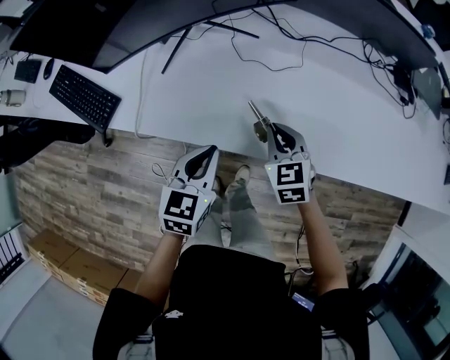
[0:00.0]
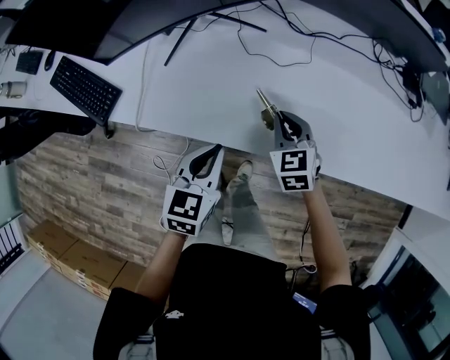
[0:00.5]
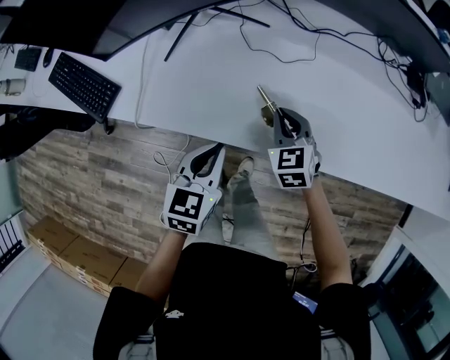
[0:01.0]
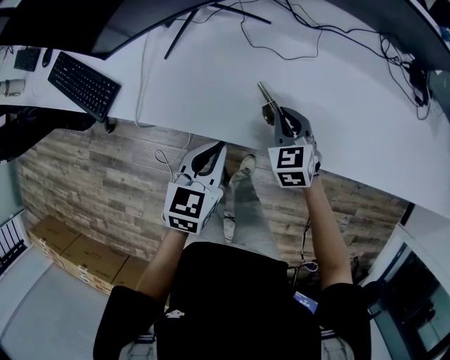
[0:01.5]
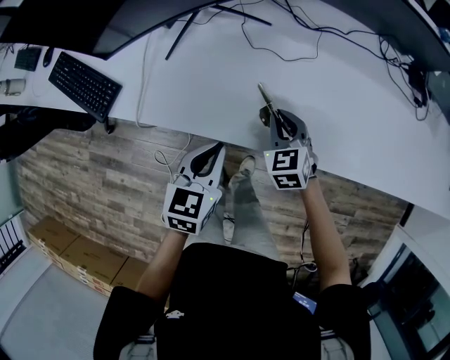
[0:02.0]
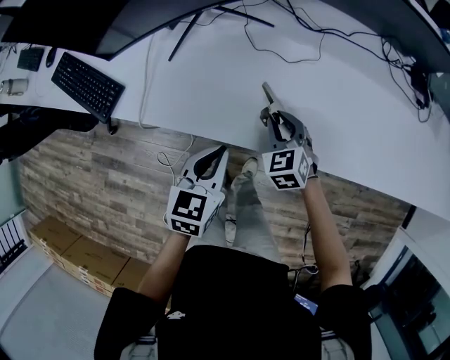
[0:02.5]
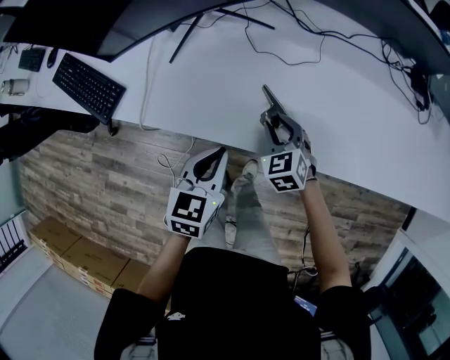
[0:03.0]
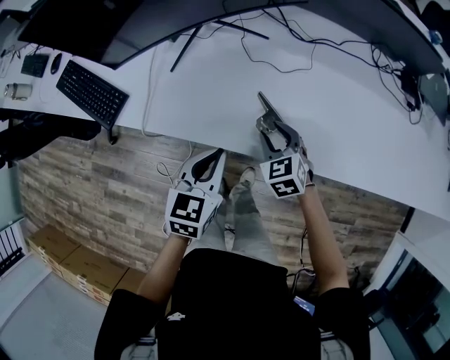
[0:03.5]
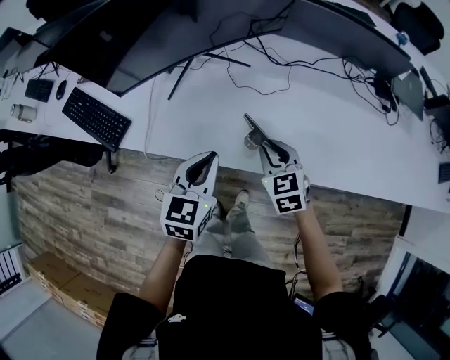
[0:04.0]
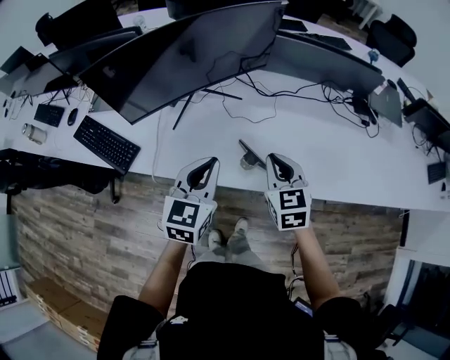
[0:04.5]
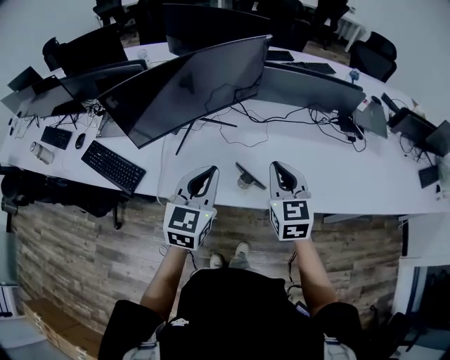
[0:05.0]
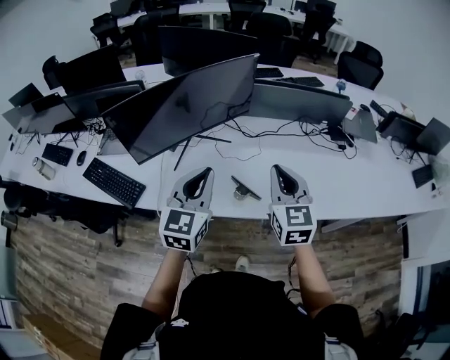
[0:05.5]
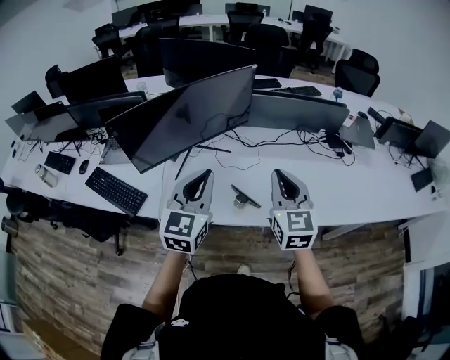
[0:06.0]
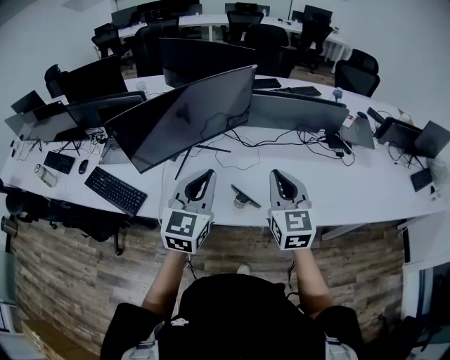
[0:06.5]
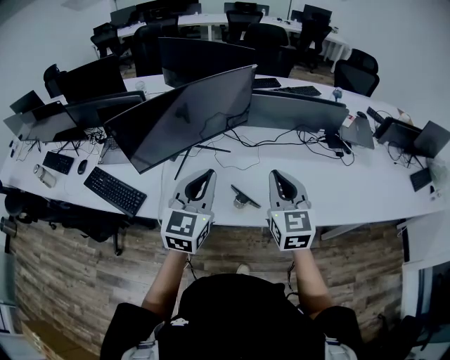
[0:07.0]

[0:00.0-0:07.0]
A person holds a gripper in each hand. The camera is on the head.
0:00.0 to 0:02.0: The right gripper goes some 5 cm downward.
0:02.0 to 0:03.5: The right gripper opens.
0:03.5 to 0:05.0: Both grippers move upward, approximately 25 cm. The left gripper changes its angle by roughly 30 degrees; the right gripper rotates roughly 40 degrees, and closes its fingers.
0:05.0 to 0:07.0: Both grippers move upward, roughly 5 cm.

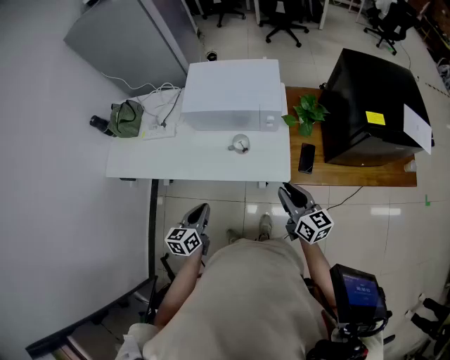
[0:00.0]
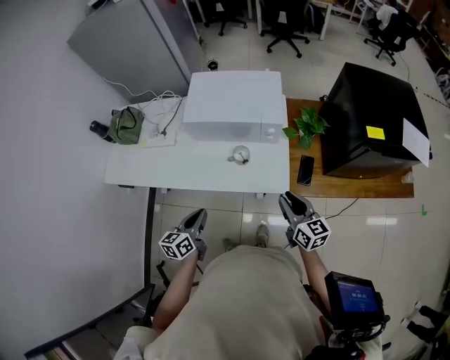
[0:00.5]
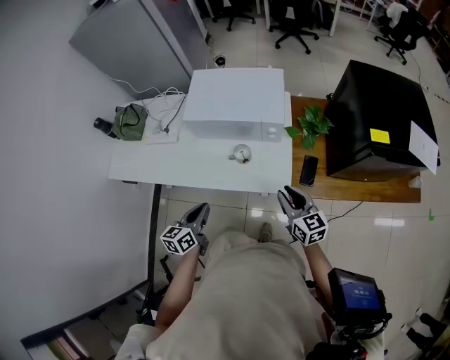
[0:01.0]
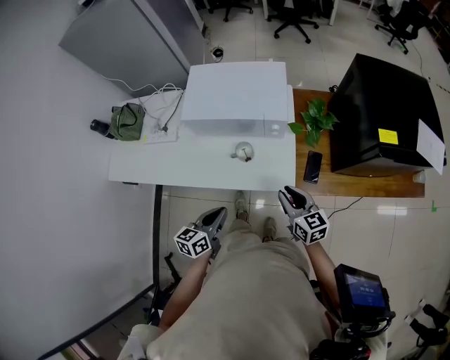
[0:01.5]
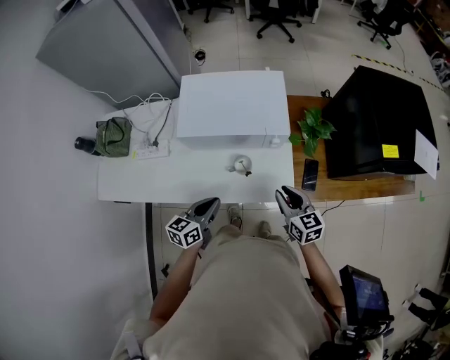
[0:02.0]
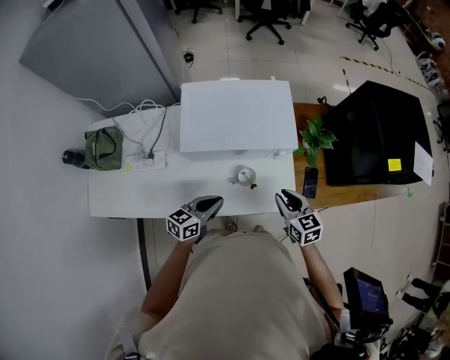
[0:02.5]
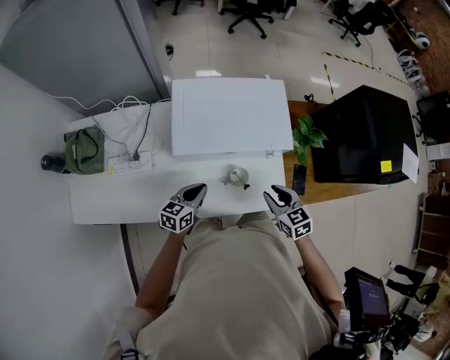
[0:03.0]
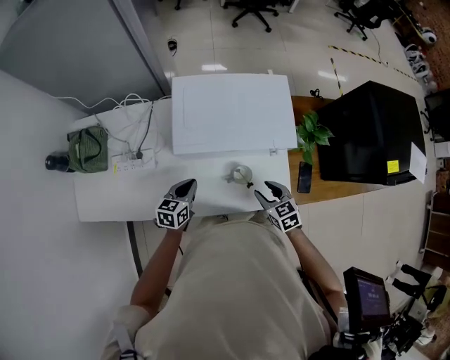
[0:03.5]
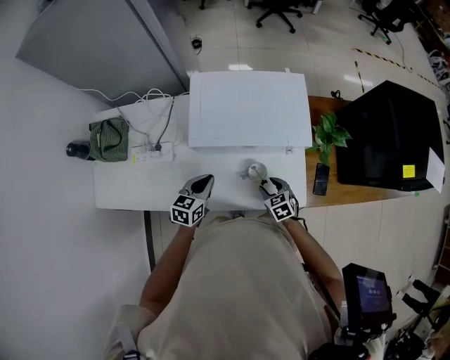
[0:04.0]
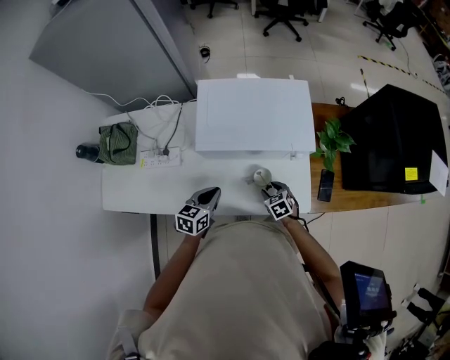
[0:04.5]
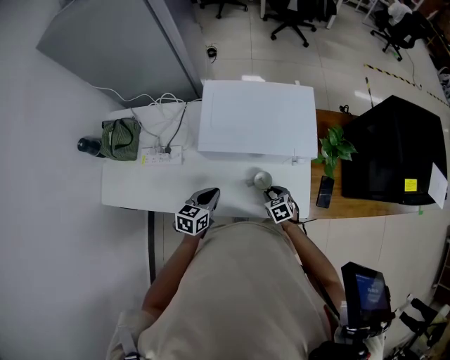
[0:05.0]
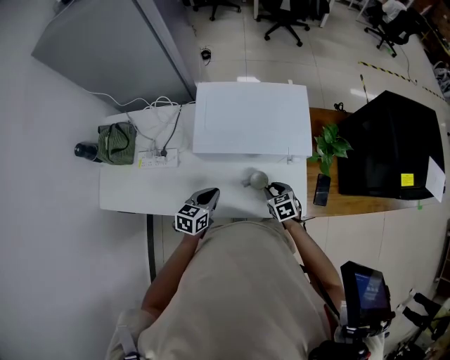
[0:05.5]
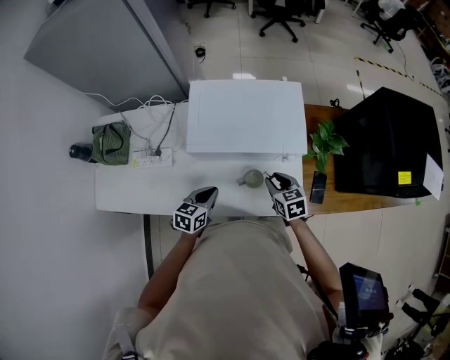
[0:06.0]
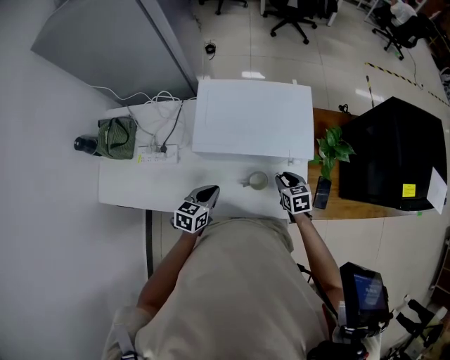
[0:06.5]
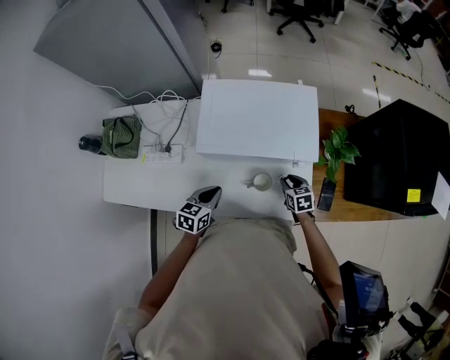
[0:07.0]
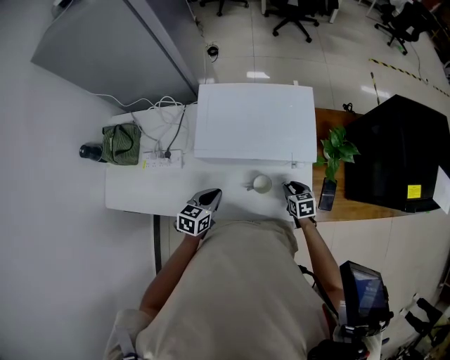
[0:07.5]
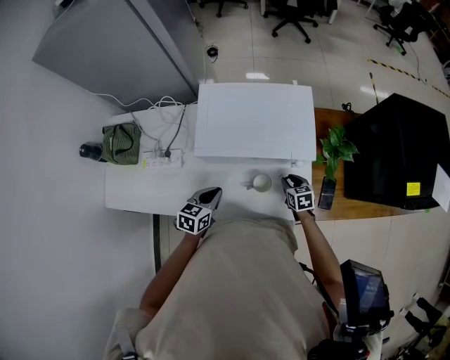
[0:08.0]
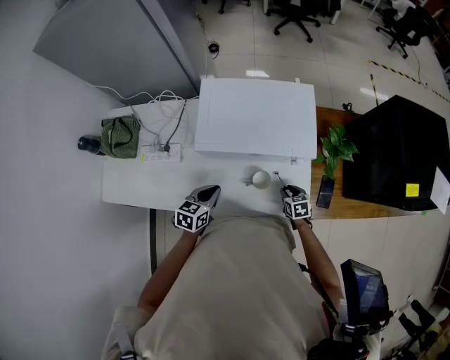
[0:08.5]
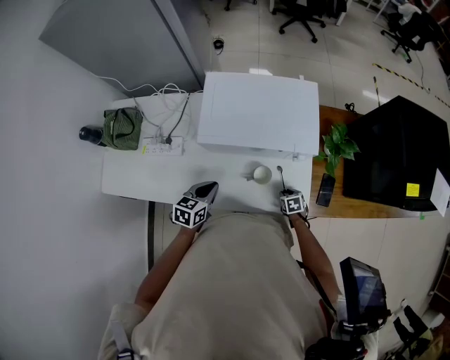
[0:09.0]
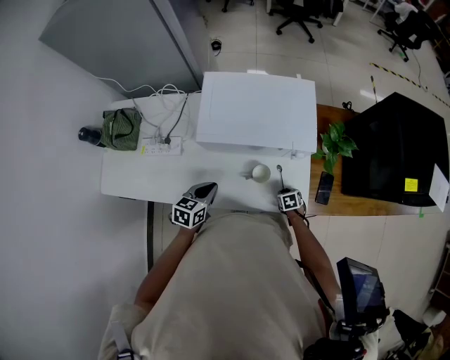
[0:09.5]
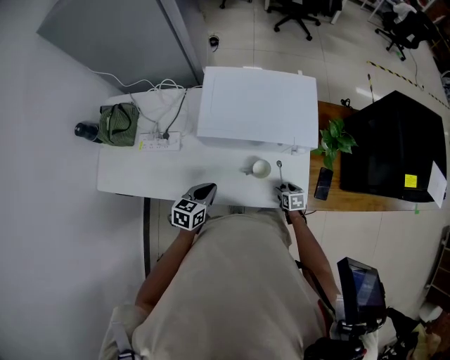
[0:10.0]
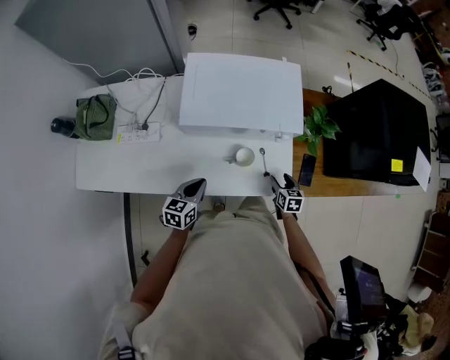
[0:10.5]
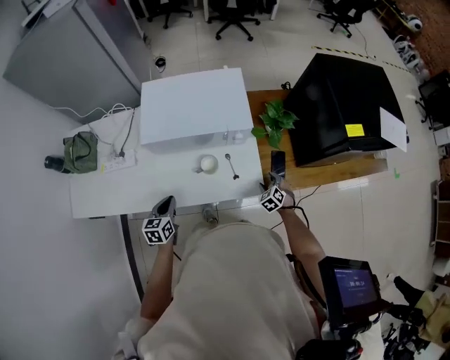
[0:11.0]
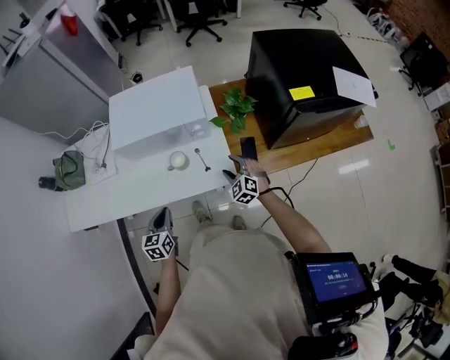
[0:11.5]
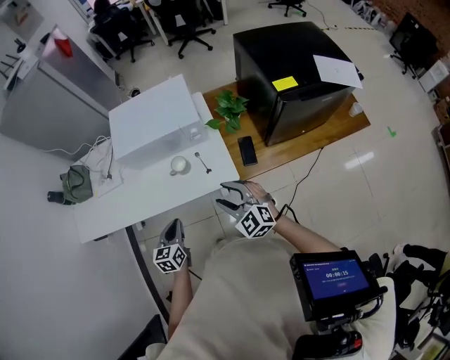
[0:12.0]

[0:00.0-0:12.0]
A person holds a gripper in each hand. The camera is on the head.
0:00.0 to 0:02.0: The left gripper moves forward, approximately 15 cm. Meanwhile the right gripper moves forward and downward, approximately 15 cm.
0:02.0 to 0:04.0: The right gripper heads downward and to the left, covering some 20 cm, changes its angle by approximately 30 degrees, and opens its fingers. The left gripper moves forward, to the left and downward, approximately 15 cm.
0:04.0 to 0:06.0: The right gripper heads upward, covering roughly 10 cm.
0:06.0 to 0:08.0: The right gripper travels downward by some 10 cm.
0:08.0 to 0:10.0: The right gripper is displaced downward by about 10 cm, and opens; the left gripper moves roughly 5 cm.
0:10.0 to 0:12.0: The left gripper goes some 25 cm backward and to the right; the right gripper goes roughly 40 cm upward and backward, and tips its fingers upward by approximately 40 degrees.

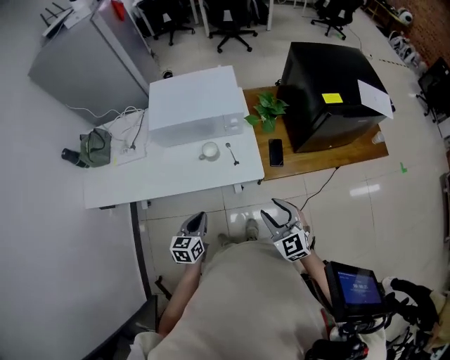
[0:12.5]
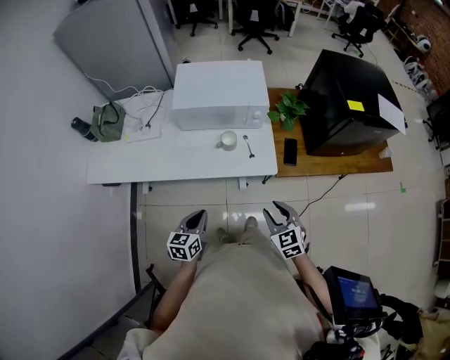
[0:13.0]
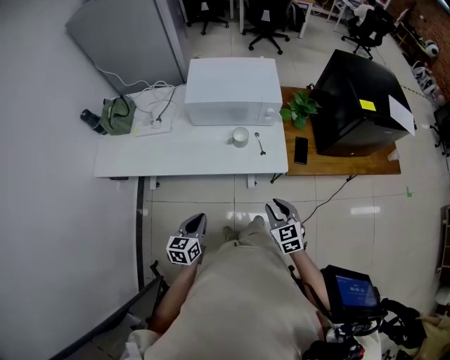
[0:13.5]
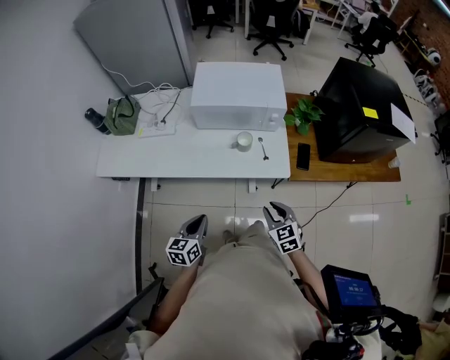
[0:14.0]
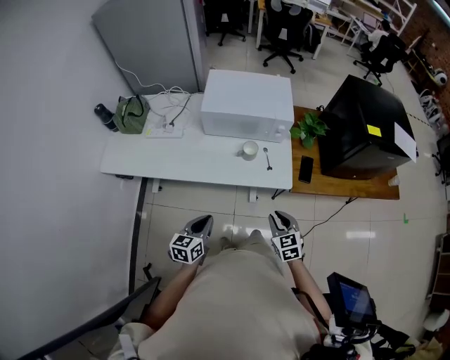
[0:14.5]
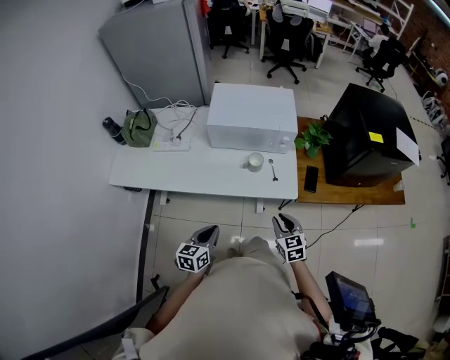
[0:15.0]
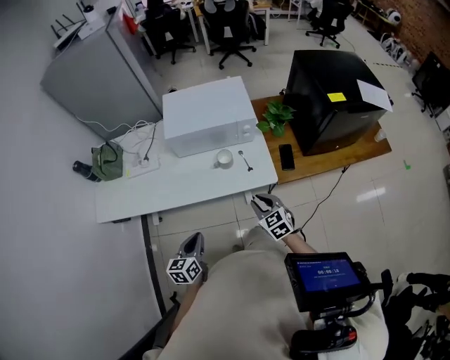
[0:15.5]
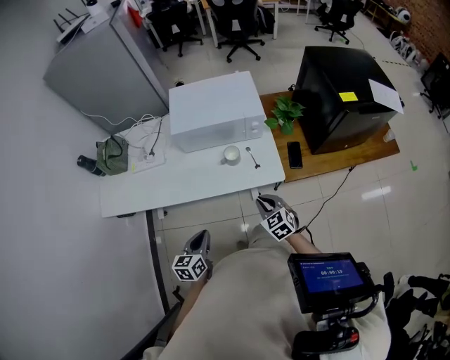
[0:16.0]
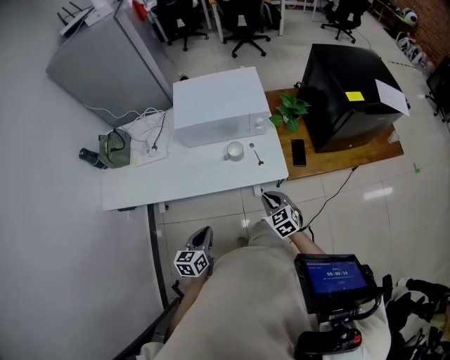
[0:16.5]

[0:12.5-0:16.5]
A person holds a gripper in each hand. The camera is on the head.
0:12.5 to 0:14.5: The left gripper goes approximately 10 cm to the left and backward, while the right gripper goes some 15 cm downward and to the left, and closes up.
0:14.5 to 0:16.5: The right gripper travels forward by roughly 5 cm.

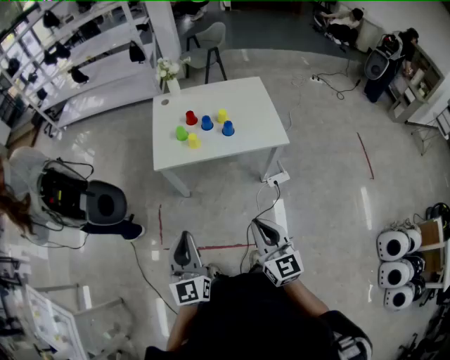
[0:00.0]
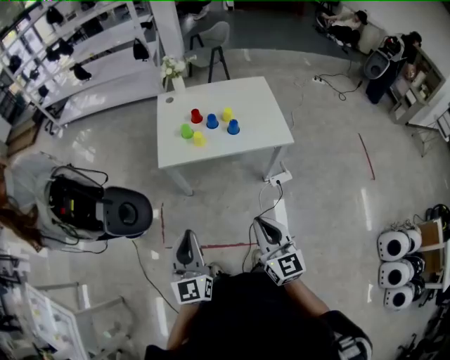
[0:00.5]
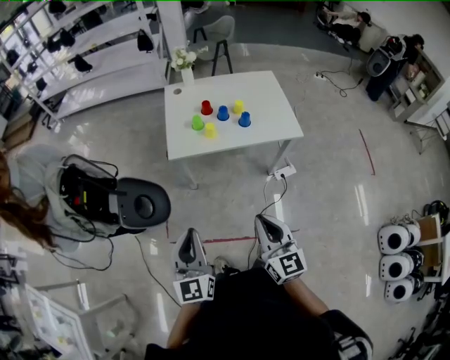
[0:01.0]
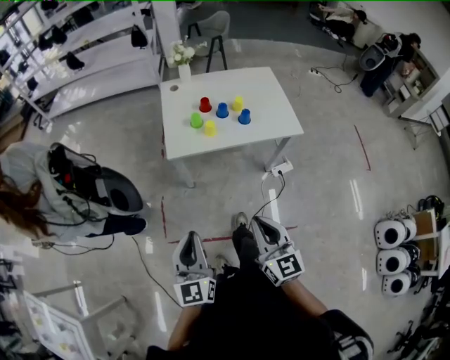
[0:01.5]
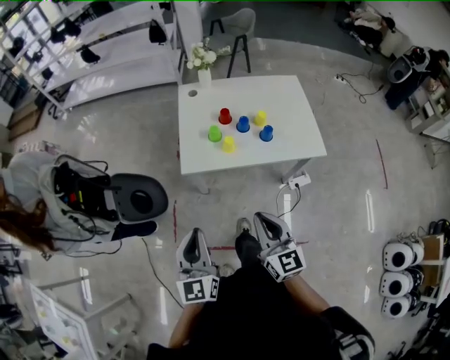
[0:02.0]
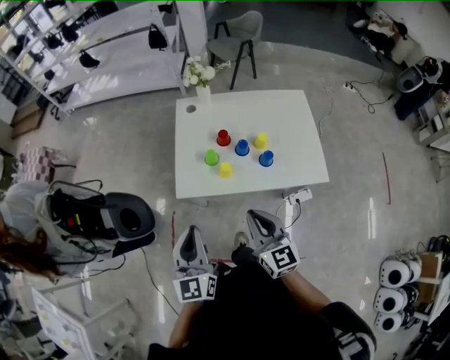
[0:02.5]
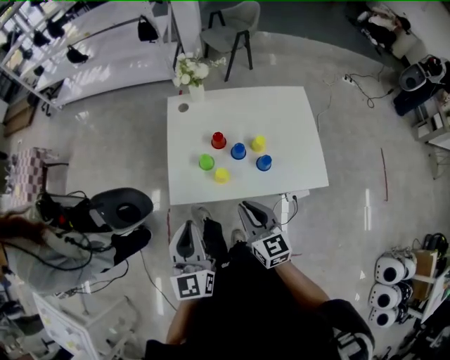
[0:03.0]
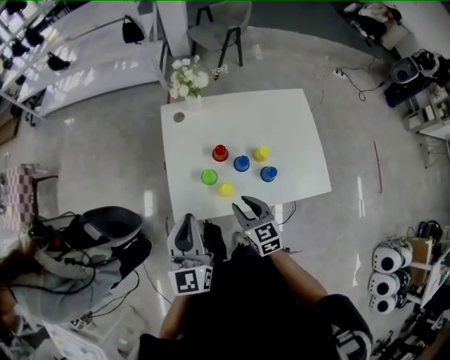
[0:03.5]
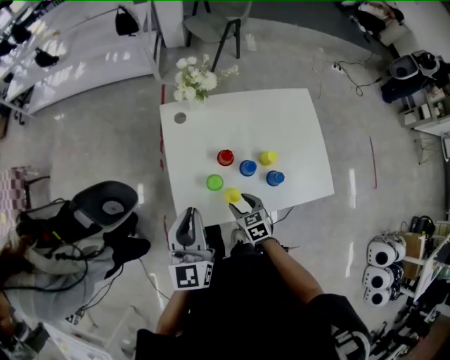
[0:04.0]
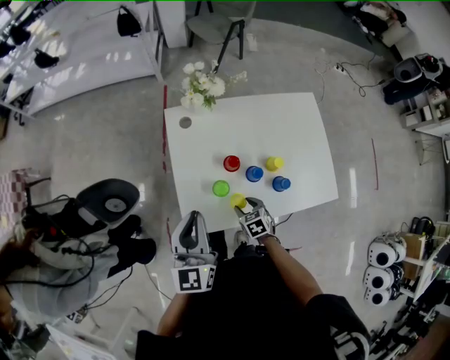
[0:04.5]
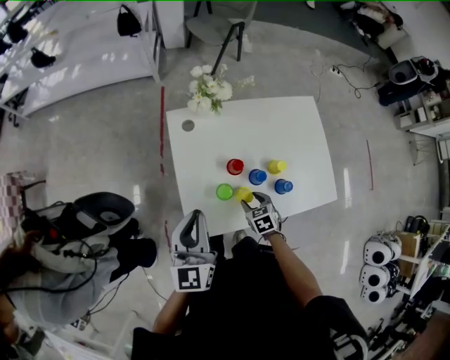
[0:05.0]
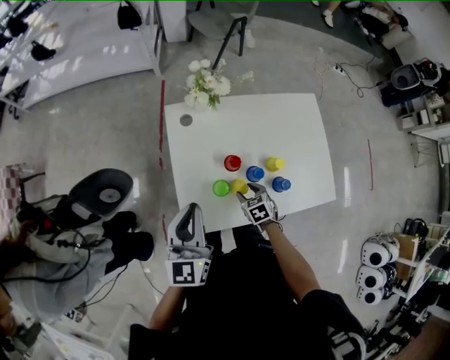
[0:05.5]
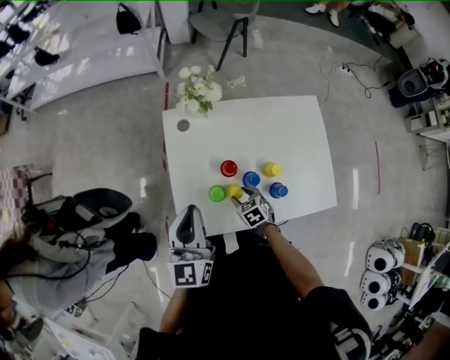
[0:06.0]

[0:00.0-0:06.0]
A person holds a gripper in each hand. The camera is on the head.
0:00.0 to 0:02.0: Both grippers move forward and to the left, approximately 20 cm.
0:02.0 to 0:04.0: The two grippers travel together, forward, roughly 40 cm. The right gripper heads downward, covering roughly 25 cm, points its fingers roughly 40 degrees further downward, and opens.
0:04.0 to 0:06.0: The right gripper shifts roughly 10 cm forward and downward; the left gripper is displaced forward by roughly 5 cm.
